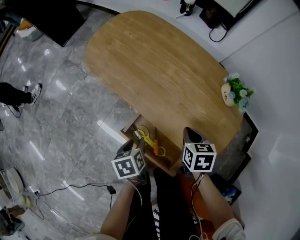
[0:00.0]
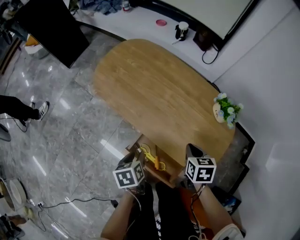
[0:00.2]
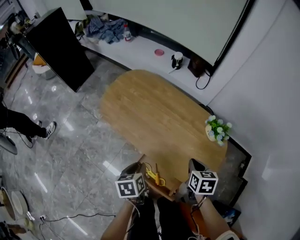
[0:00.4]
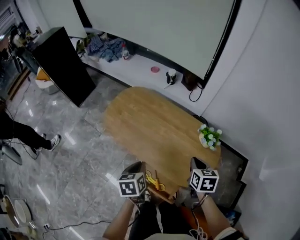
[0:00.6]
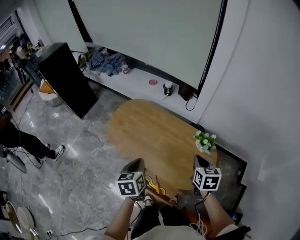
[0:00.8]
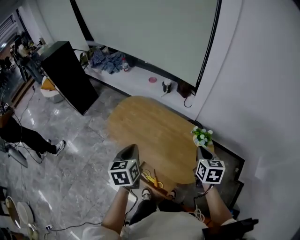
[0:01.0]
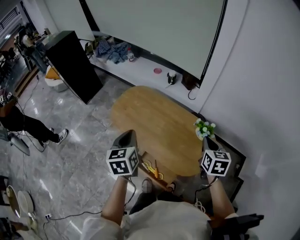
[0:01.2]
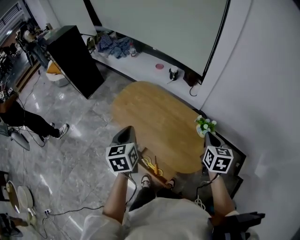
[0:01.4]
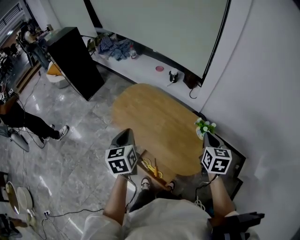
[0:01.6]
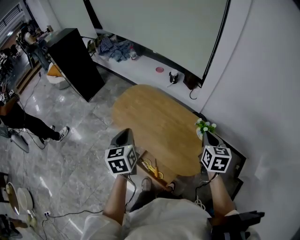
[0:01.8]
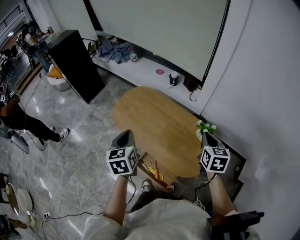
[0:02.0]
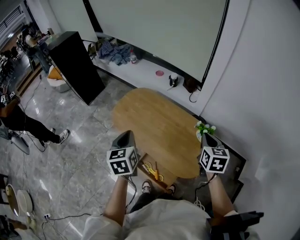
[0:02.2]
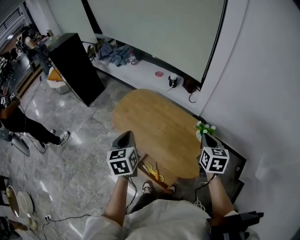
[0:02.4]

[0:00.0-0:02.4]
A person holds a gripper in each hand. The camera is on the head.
0:00.0 to 0:01.2: The two grippers go approximately 40 cm upward. The right gripper changes its angle by roughly 30 degrees. The left gripper points its fingers approximately 30 degrees further upward, and closes up.
0:01.2 to 0:02.4: The grippers move only a little.

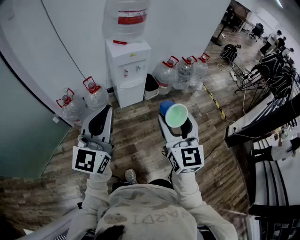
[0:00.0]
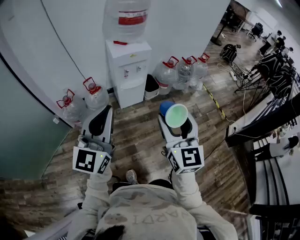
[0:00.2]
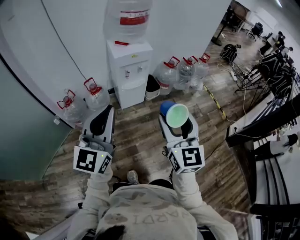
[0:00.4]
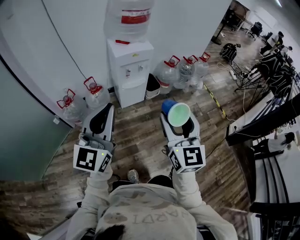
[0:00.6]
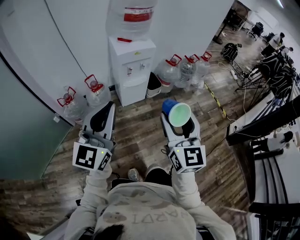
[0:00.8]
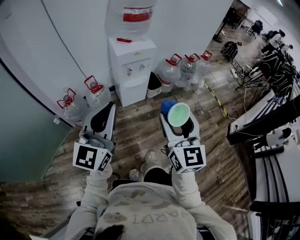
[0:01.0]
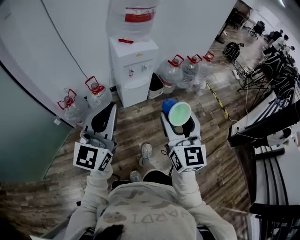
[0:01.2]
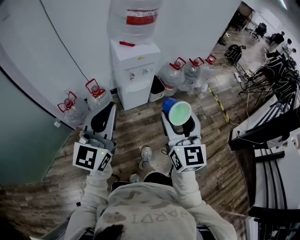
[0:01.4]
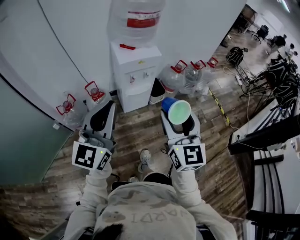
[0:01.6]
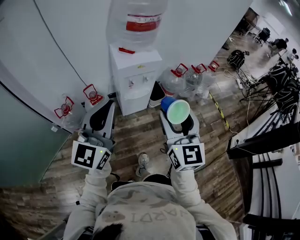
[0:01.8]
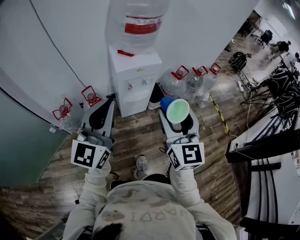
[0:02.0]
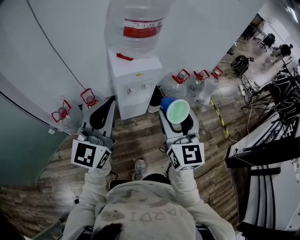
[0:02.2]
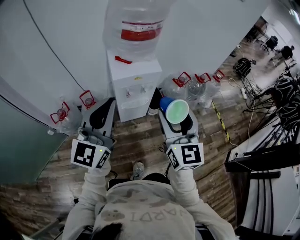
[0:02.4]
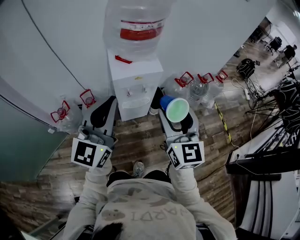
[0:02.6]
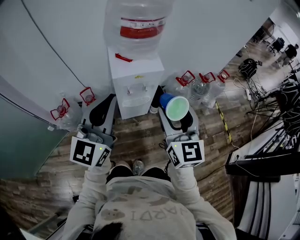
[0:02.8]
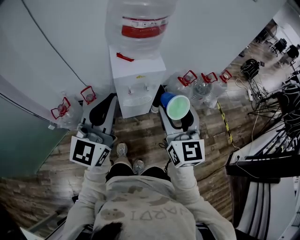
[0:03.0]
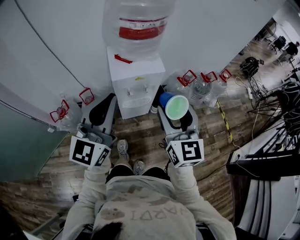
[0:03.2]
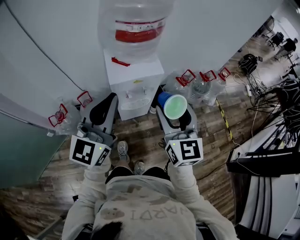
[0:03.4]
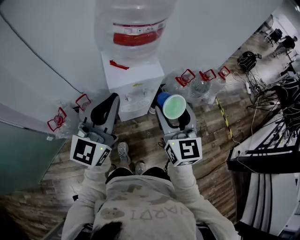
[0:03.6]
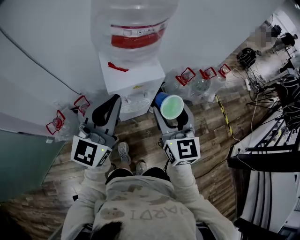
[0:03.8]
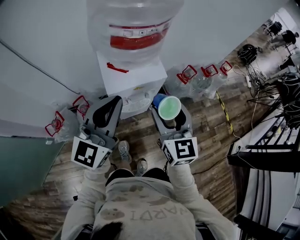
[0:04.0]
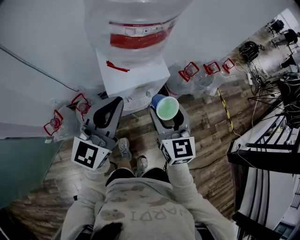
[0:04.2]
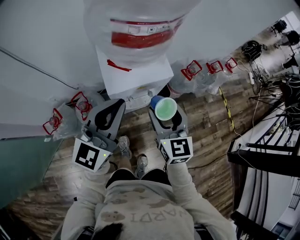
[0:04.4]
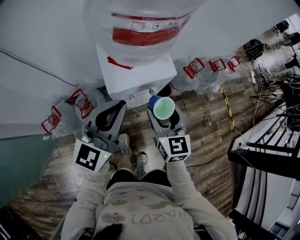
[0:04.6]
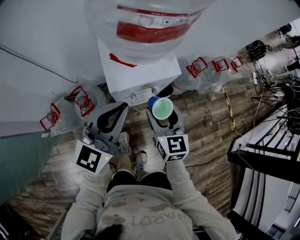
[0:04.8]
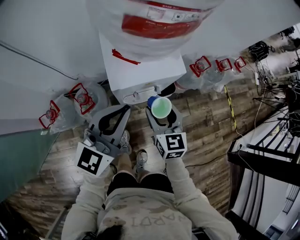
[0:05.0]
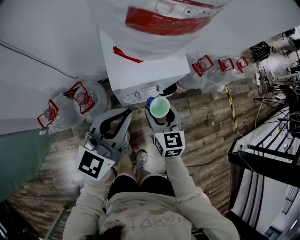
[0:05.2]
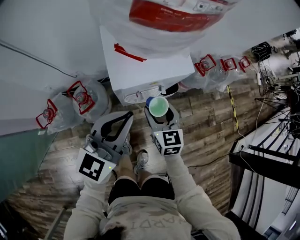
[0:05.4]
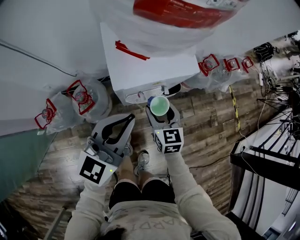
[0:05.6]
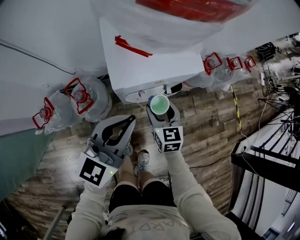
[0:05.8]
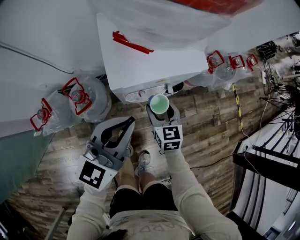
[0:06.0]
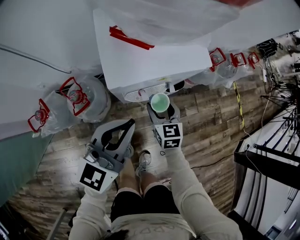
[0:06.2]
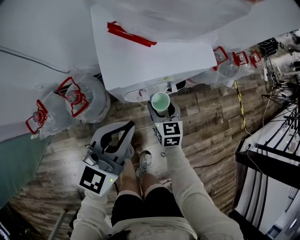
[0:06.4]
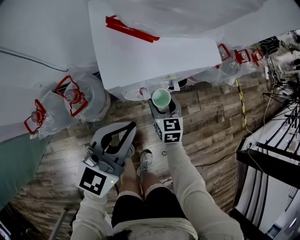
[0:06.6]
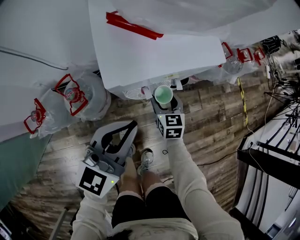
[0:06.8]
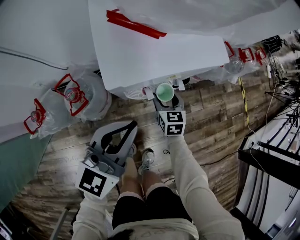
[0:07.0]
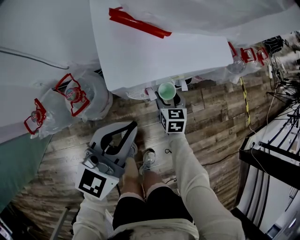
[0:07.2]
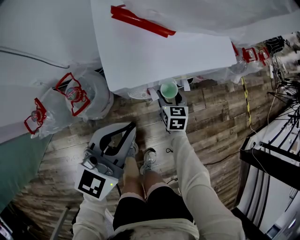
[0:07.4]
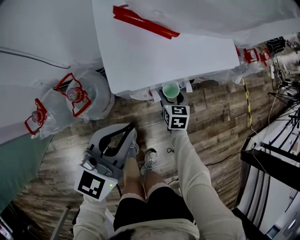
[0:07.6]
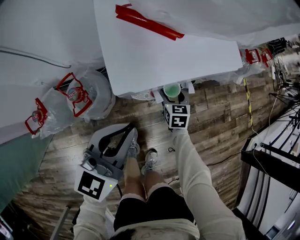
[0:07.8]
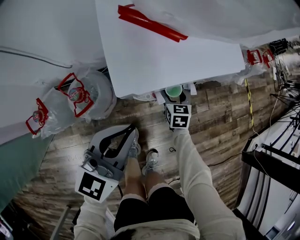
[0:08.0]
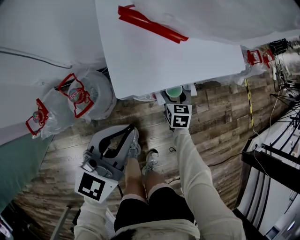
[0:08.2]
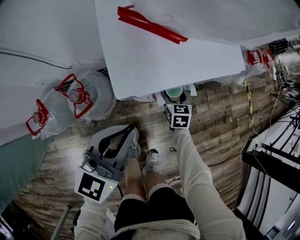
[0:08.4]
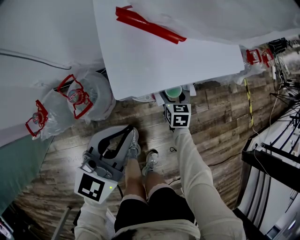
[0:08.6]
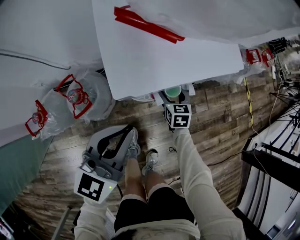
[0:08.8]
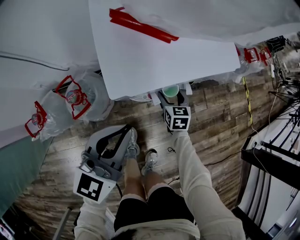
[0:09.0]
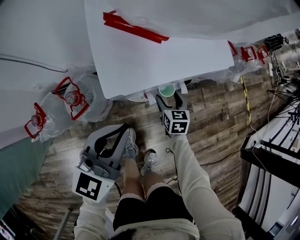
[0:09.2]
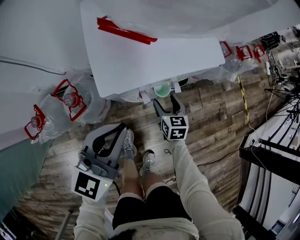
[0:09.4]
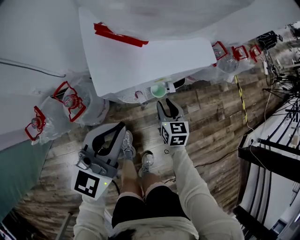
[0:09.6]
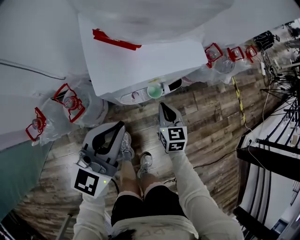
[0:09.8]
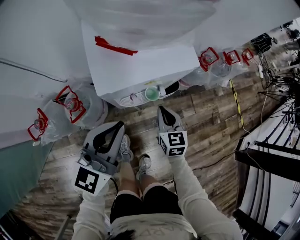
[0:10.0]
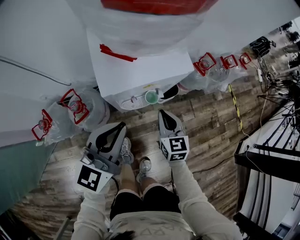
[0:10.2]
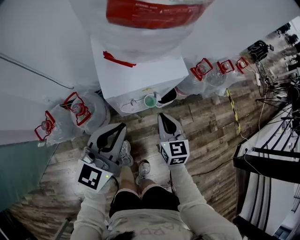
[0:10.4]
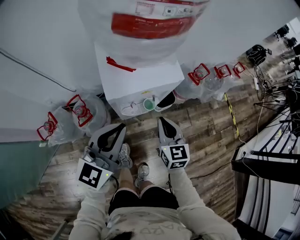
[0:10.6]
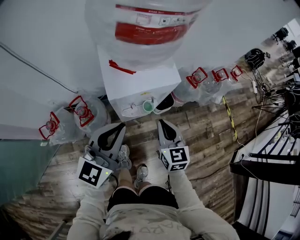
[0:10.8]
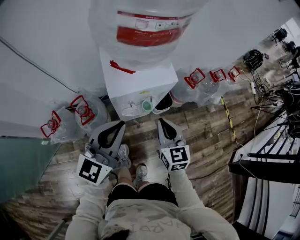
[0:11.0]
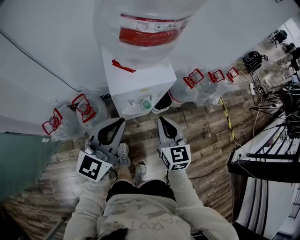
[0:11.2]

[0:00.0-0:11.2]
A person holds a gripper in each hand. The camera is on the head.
0:00.0 to 0:01.6: The two grippers go some 15 cm forward and to the left.
0:01.6 to 0:03.2: Both grippers move forward, some 25 cm.
0:03.2 to 0:04.8: The left gripper goes about 20 cm forward and downward; the right gripper goes some 25 cm downward, forward and to the left.
0:04.8 to 0:06.4: The right gripper is displaced downward by approximately 30 cm; the left gripper moves downward, some 20 cm.
0:06.4 to 0:08.0: The right gripper goes about 15 cm downward and forward. The left gripper ends up about 5 cm from where it was.
0:08.0 to 0:09.6: The right gripper goes some 10 cm upward and backward, and closes.
0:09.6 to 0:11.2: The right gripper is displaced upward by some 30 cm, rotates about 20 degrees, and closes its fingers, while the left gripper shifts about 20 cm upward.

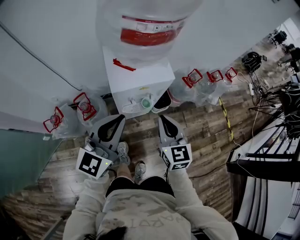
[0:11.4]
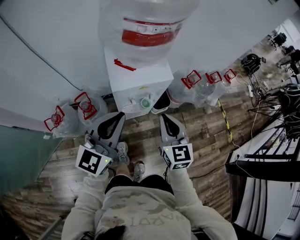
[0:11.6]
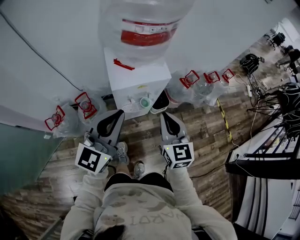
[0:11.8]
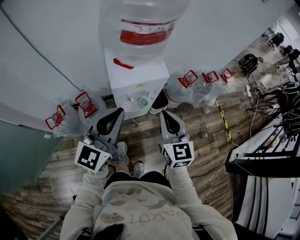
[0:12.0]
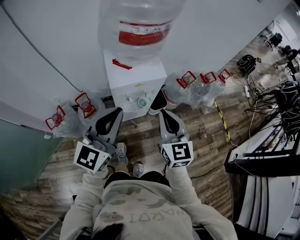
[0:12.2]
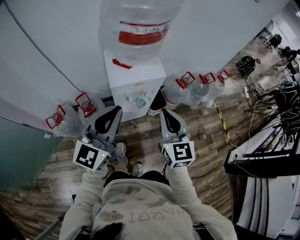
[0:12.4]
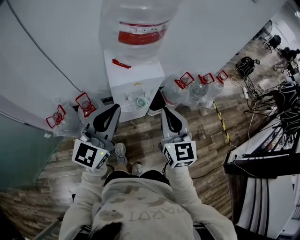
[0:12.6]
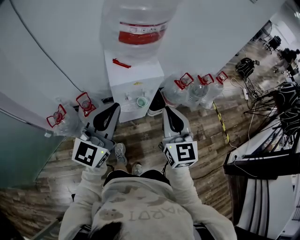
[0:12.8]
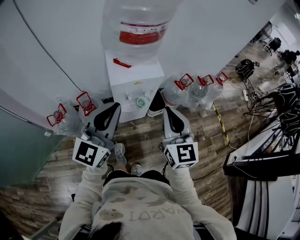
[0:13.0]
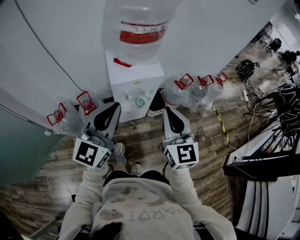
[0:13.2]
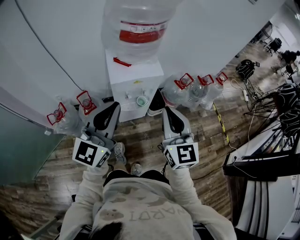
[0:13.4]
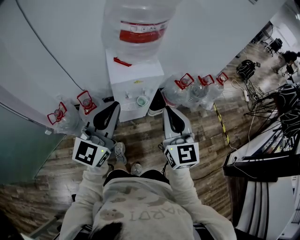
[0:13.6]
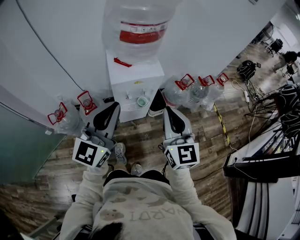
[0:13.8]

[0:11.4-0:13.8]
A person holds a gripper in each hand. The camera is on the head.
0:11.4 to 0:12.6: Both grippers move upward and backward, roughly 10 cm.
0:12.6 to 0:13.8: The grippers make only small movements.

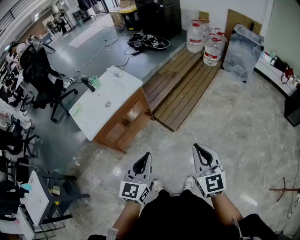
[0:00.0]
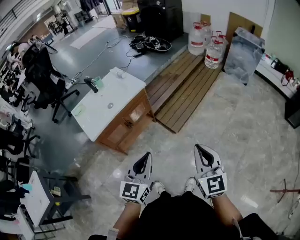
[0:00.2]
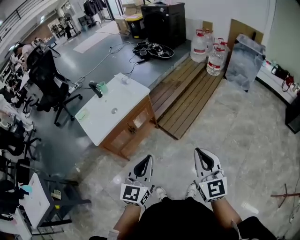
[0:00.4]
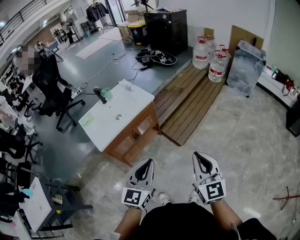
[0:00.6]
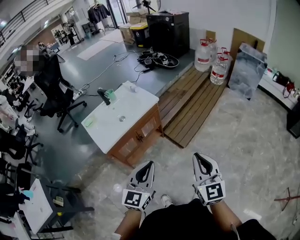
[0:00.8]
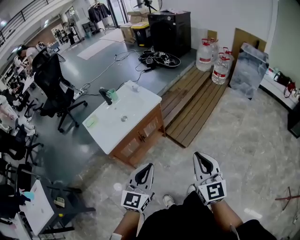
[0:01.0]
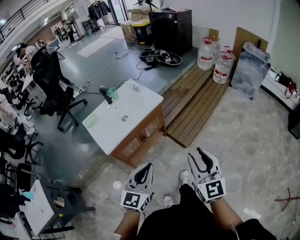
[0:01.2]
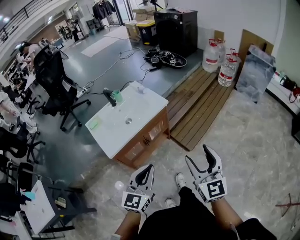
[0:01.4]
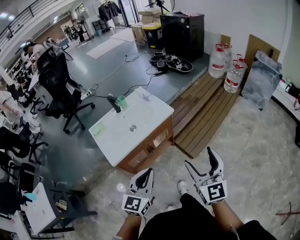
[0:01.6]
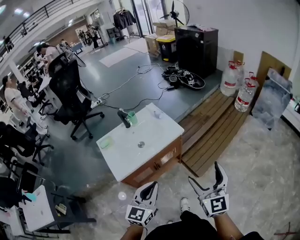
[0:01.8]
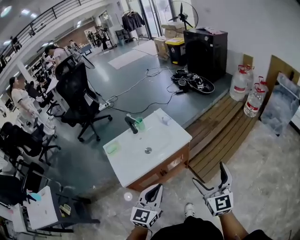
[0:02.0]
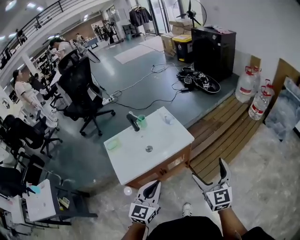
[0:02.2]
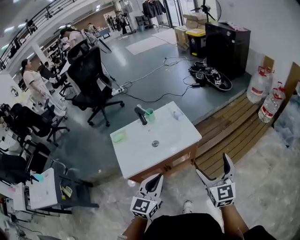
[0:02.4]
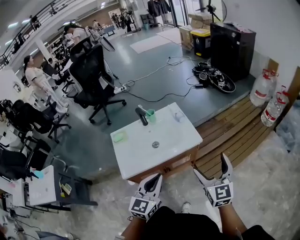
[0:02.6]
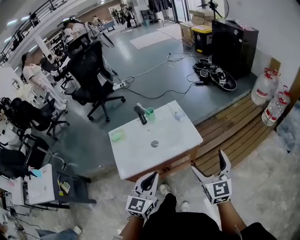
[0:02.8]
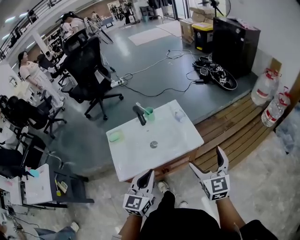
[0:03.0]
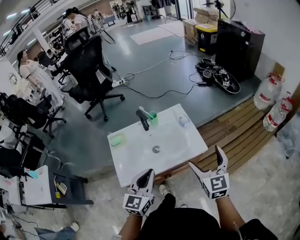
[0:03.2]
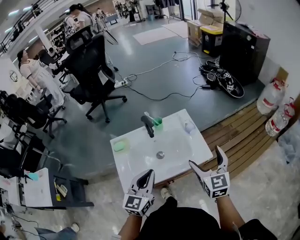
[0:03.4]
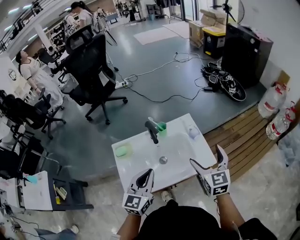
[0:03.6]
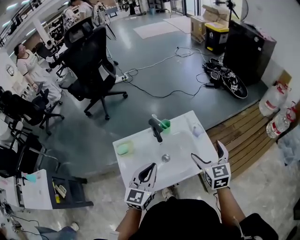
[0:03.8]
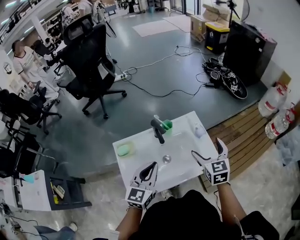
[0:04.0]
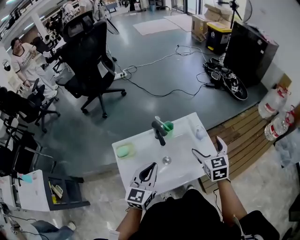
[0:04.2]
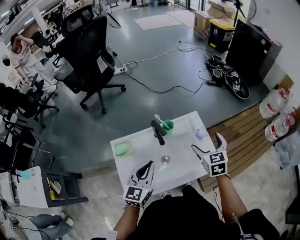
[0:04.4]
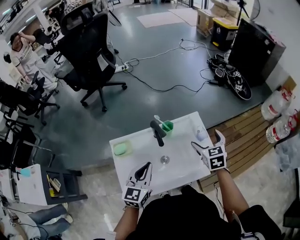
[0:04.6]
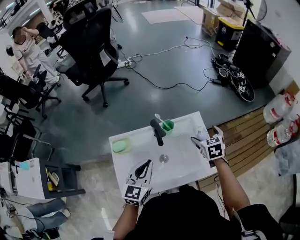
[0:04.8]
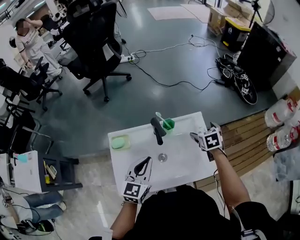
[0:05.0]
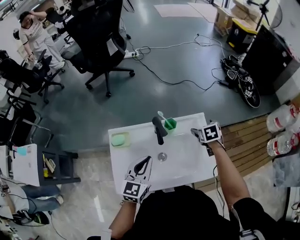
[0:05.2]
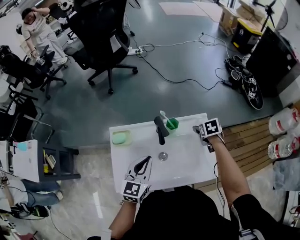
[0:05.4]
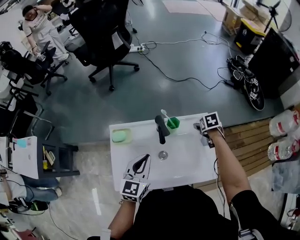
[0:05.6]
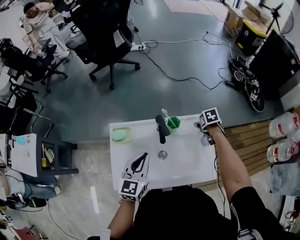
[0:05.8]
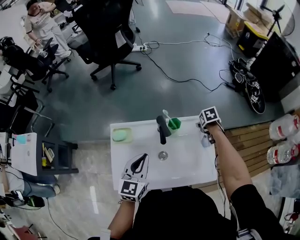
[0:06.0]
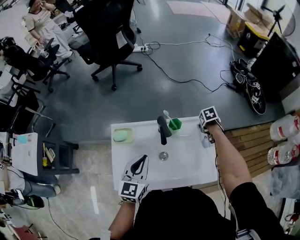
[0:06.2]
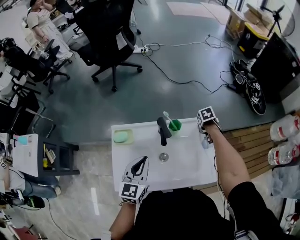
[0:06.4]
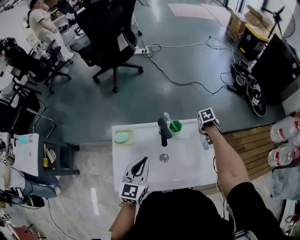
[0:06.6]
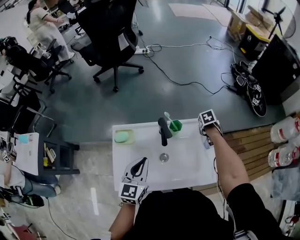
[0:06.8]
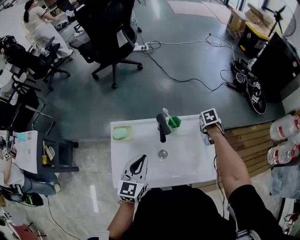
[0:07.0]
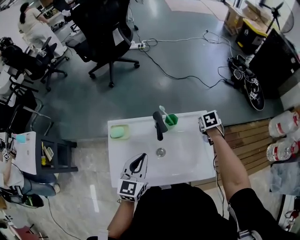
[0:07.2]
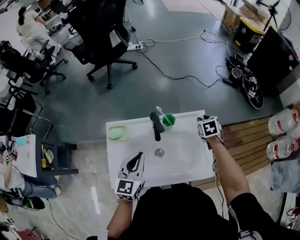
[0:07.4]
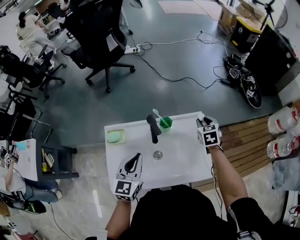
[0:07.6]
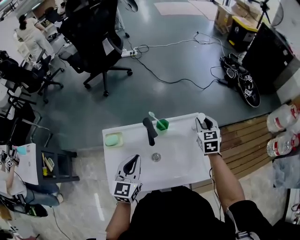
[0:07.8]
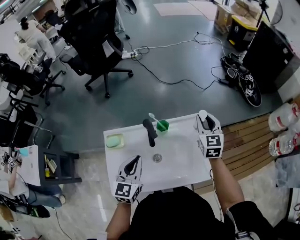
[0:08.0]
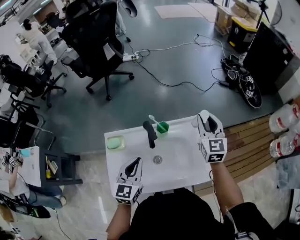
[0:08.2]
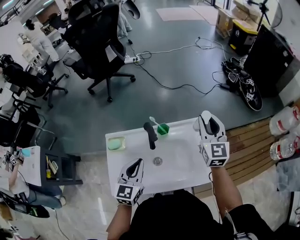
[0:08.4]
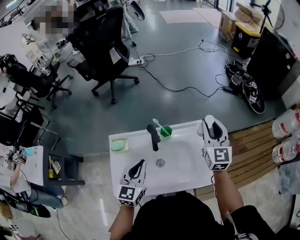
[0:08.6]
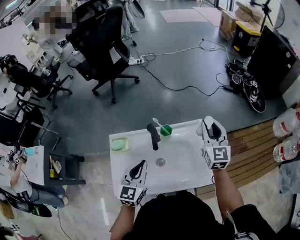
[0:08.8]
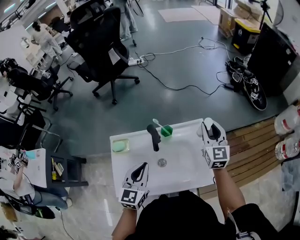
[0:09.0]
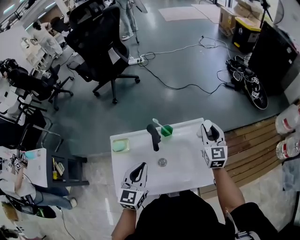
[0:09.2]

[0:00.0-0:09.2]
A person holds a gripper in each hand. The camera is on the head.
0:00.0 to 0:01.6: The grippers both shift to the left and forward by about 25 cm. The right gripper opens up.
0:01.6 to 0:03.0: The grippers both shift forward by approximately 30 cm. The left gripper turns by roughly 20 degrees.
0:03.0 to 0:04.6: The grippers both shift forward and to the left by roughly 35 cm. The right gripper changes its angle by roughly 30 degrees.
0:04.6 to 0:06.2: The right gripper heads downward, covering approximately 20 cm, points its fingers about 40 degrees further downward, and closes.
0:06.2 to 0:07.6: The right gripper is displaced upward by some 10 cm, and tips its fingers upward by about 40 degrees.
0:07.6 to 0:09.2: The right gripper is displaced upward by about 10 cm, and angles its fingers upward, by roughly 30 degrees.
